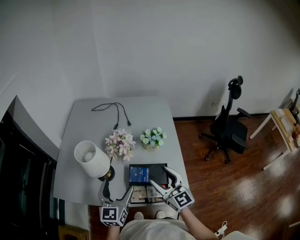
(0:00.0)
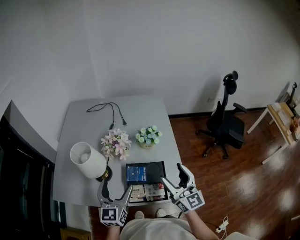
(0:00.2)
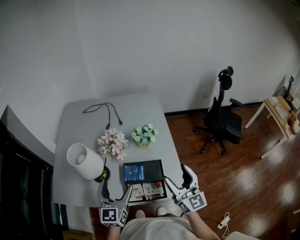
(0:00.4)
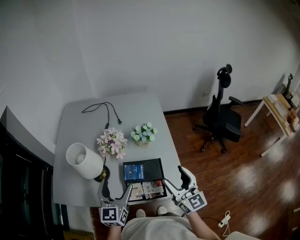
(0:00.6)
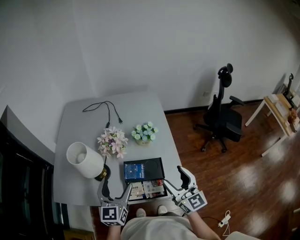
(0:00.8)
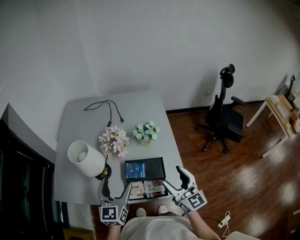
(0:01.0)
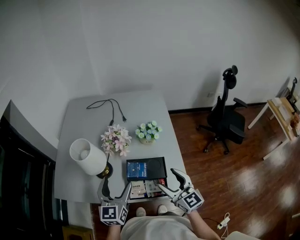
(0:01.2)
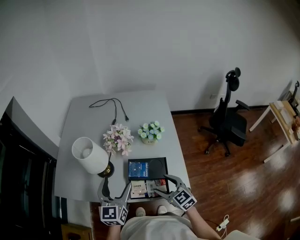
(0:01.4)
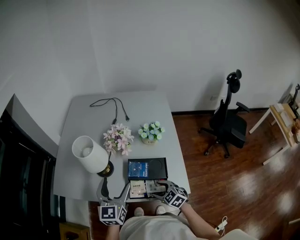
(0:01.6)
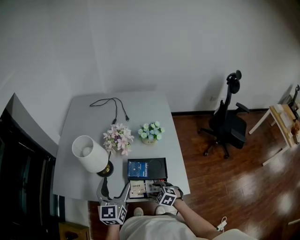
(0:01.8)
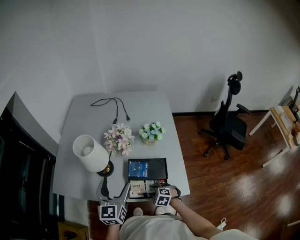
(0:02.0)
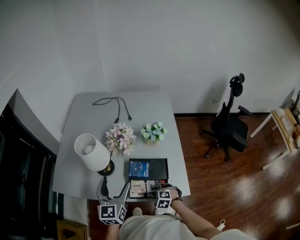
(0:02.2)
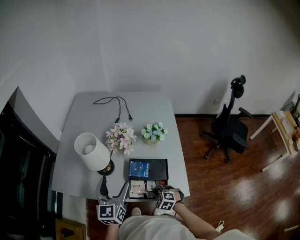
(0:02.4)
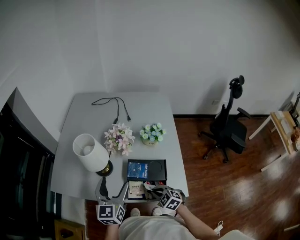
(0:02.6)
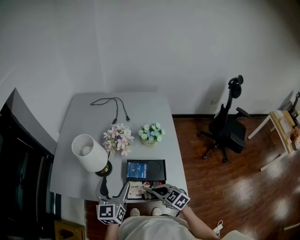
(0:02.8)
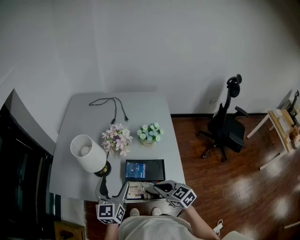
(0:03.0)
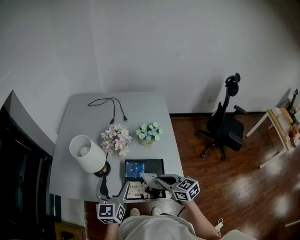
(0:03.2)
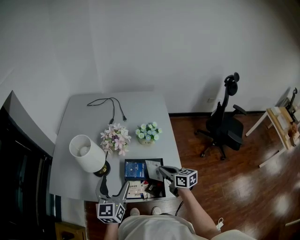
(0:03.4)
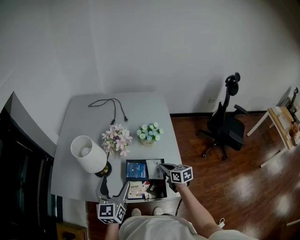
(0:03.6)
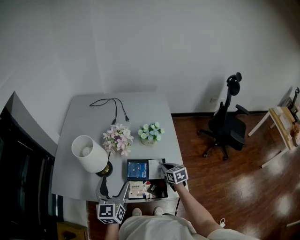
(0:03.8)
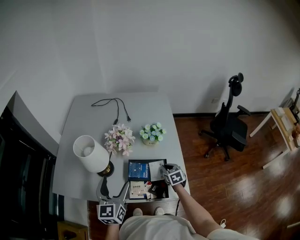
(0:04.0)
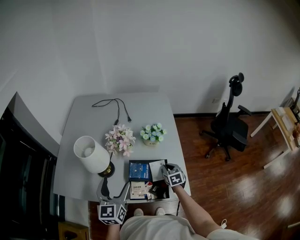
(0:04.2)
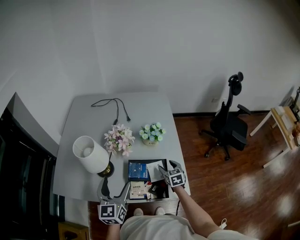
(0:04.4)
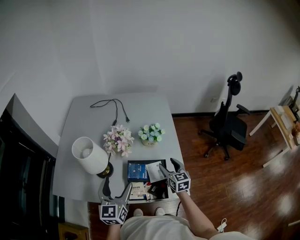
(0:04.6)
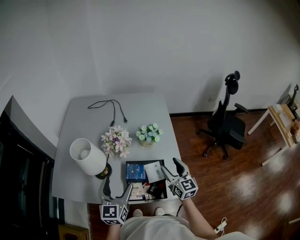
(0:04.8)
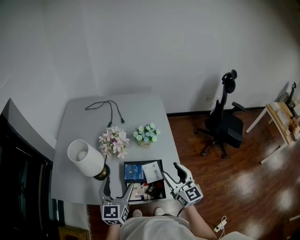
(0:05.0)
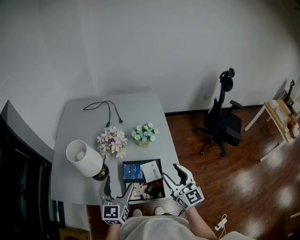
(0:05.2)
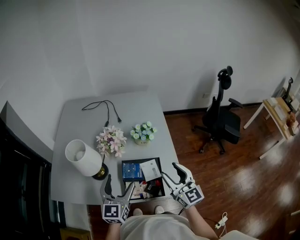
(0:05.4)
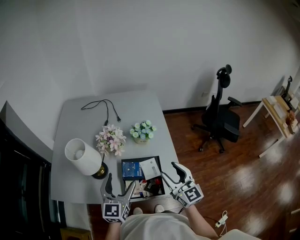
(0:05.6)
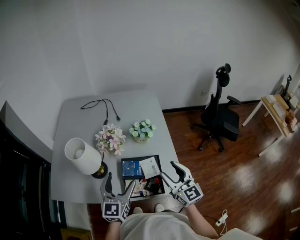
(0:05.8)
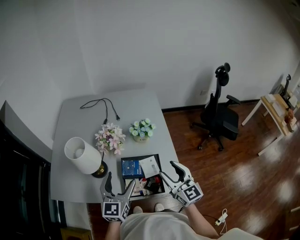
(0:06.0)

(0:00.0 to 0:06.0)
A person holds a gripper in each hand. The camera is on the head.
0:00.0 - 0:01.6: The right gripper heads downward, covering approximately 20 cm, and tilts its fingers about 50 degrees downward.
0:01.6 - 0:03.0: The right gripper moves upward, some 10 cm, and closes.
0:03.0 - 0:04.4: The right gripper goes roughly 20 cm forward, to the right and downward, changes its angle by roughly 30 degrees, and opens up.
0:04.4 - 0:06.0: The right gripper is displaced upward and backward by approximately 25 cm, and tips its fingers upward by roughly 40 degrees; the left gripper travels to the right by roughly 5 cm.

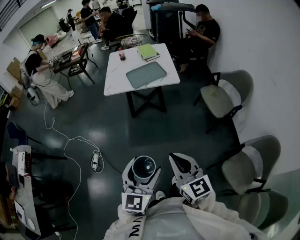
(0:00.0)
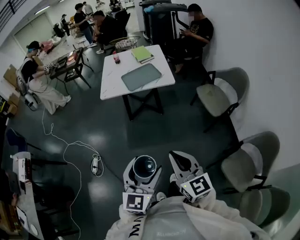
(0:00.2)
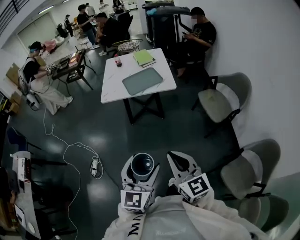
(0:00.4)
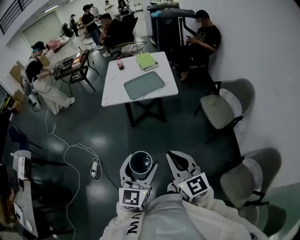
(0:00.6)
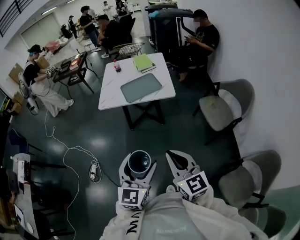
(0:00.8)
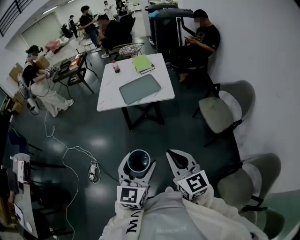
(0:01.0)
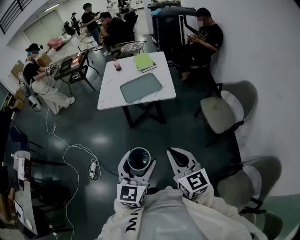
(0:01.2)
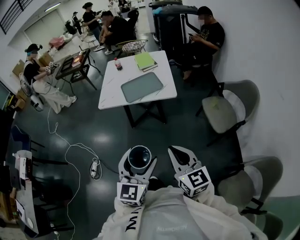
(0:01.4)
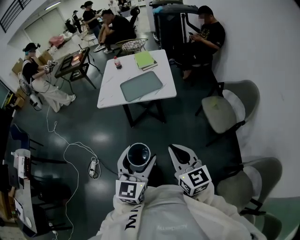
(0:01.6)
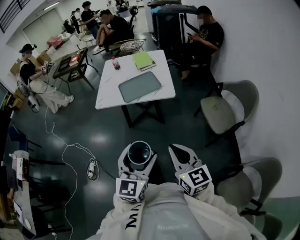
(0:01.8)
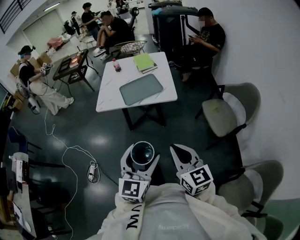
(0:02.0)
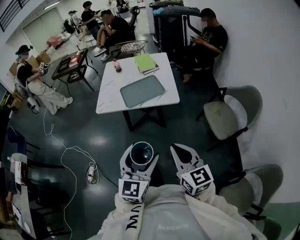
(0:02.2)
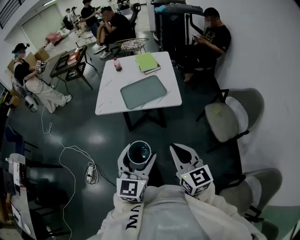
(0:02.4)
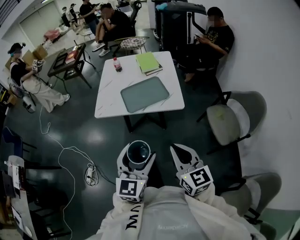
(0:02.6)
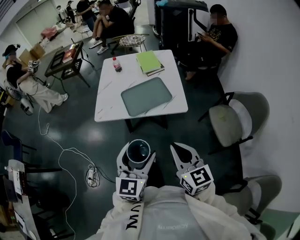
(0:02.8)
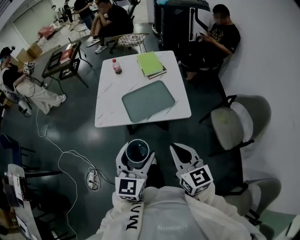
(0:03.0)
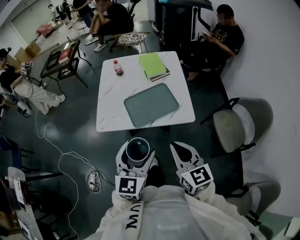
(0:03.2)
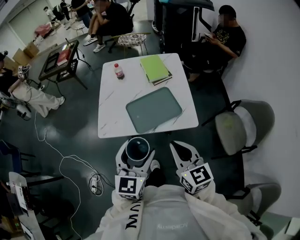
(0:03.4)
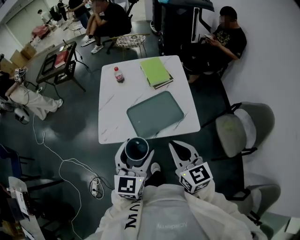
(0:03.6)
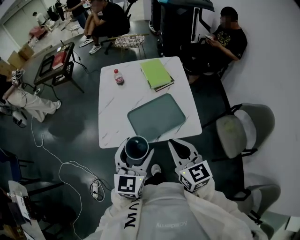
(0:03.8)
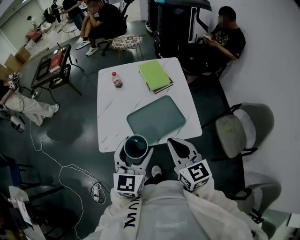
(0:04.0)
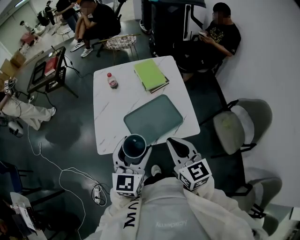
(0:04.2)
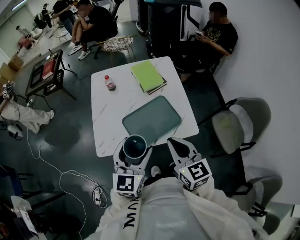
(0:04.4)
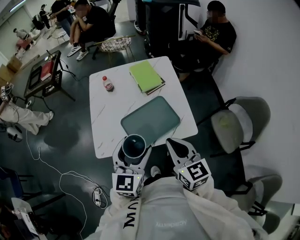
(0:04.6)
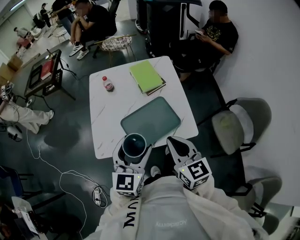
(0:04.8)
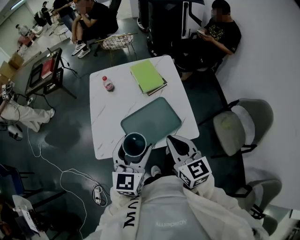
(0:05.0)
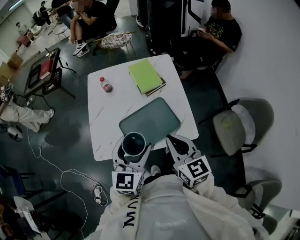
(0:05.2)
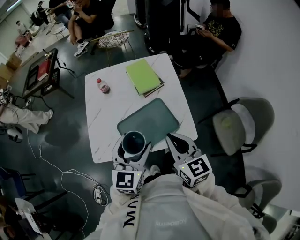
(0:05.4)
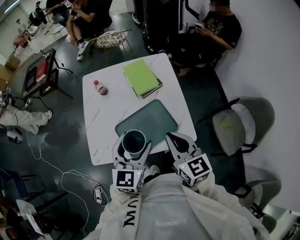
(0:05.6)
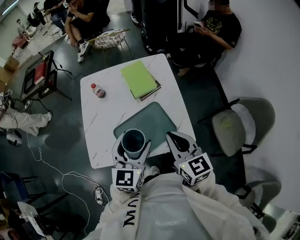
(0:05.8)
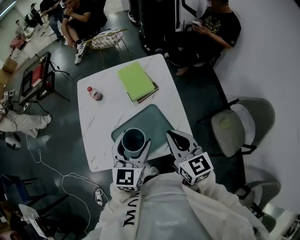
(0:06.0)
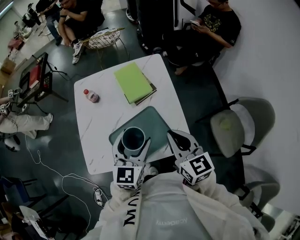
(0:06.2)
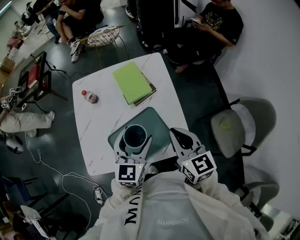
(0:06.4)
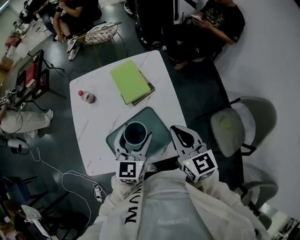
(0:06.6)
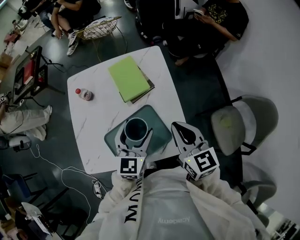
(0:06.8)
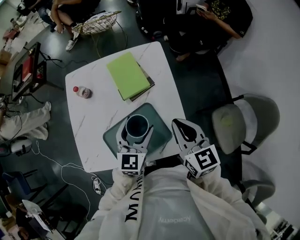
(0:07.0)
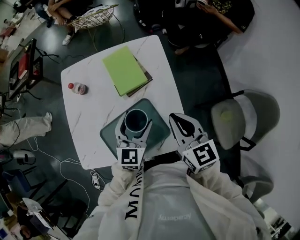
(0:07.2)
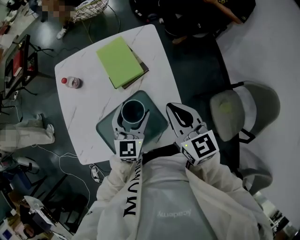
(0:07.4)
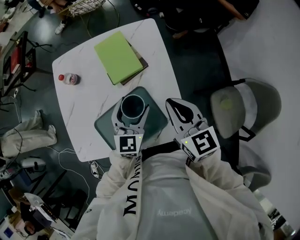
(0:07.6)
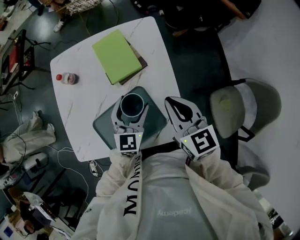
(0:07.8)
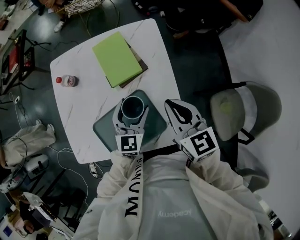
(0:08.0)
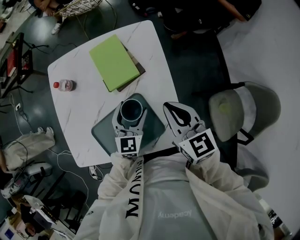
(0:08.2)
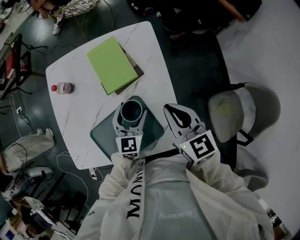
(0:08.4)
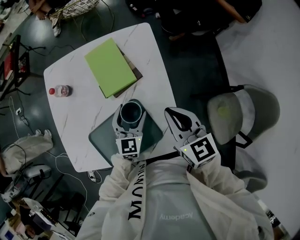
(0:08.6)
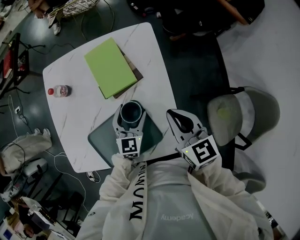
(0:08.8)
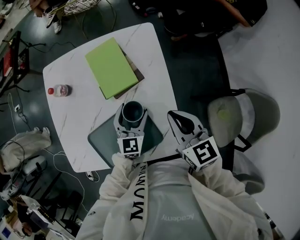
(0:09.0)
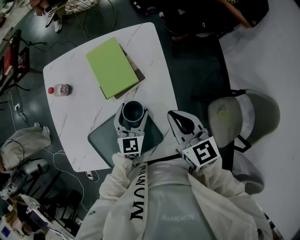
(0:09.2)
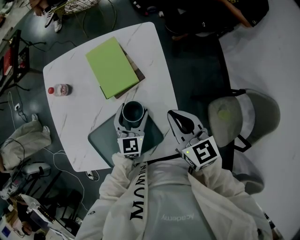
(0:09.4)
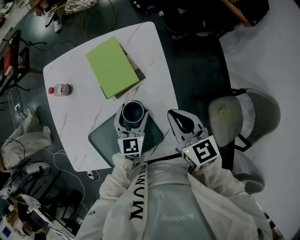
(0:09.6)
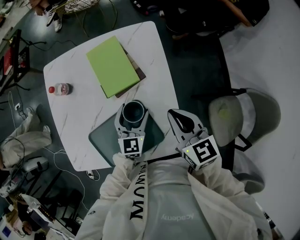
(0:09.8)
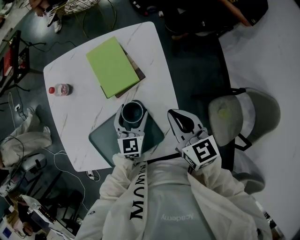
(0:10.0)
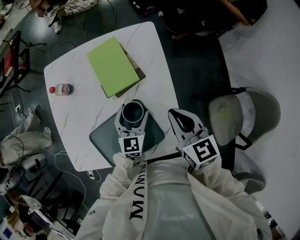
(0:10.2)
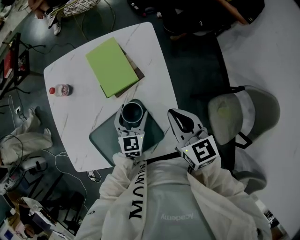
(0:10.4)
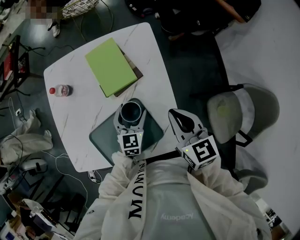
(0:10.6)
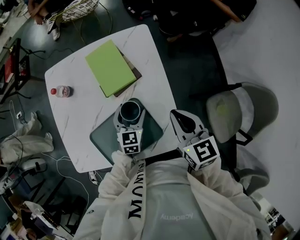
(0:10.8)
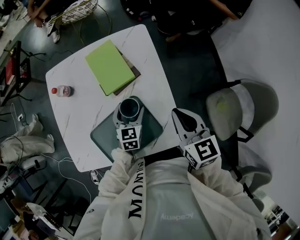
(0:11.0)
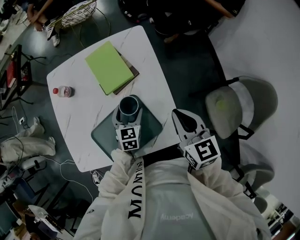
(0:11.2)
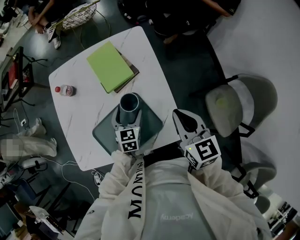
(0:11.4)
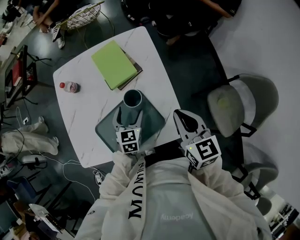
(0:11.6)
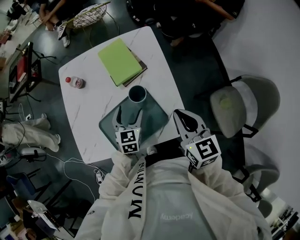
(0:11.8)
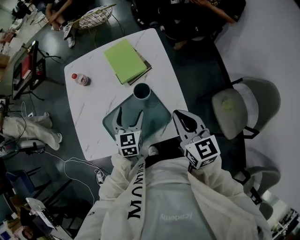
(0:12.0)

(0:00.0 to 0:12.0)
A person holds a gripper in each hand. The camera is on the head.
0:00.0 - 0:01.6: Both grippers move forward and to the right, about 20 cm.
0:01.6 - 0:03.0: Both grippers move forward, roughly 25 cm.
0:03.0 - 0:04.4: The two grippers go roughly 20 cm forward.
0:04.4 - 0:06.0: The two grippers go some 15 cm forward and to the right.
0:06.0 - 0:07.6: The right gripper is displaced forward, to the right and downward by approximately 15 cm. Meanwhile the left gripper shifts some 20 cm forward, downward and to the right.
0:07.6 - 0:09.0: The left gripper travels downward by approximately 10 cm. Meanwhile the right gripper is displaced downward by roughly 5 cm.
0:09.0 - 0:10.4: The grippers stay close to where they were, moving slightly.
0:10.4 - 0:12.0: The left gripper moves backward, to the left and upward, approximately 15 cm. The right gripper shifts roughly 15 cm backward and upward.

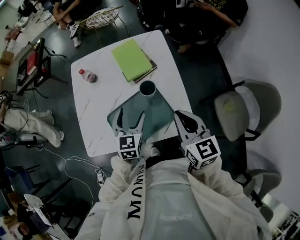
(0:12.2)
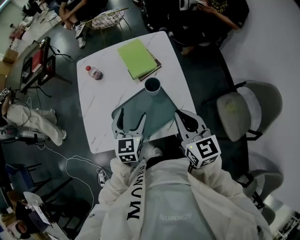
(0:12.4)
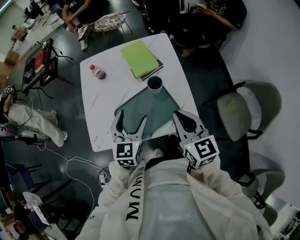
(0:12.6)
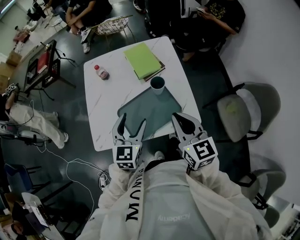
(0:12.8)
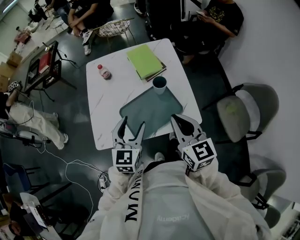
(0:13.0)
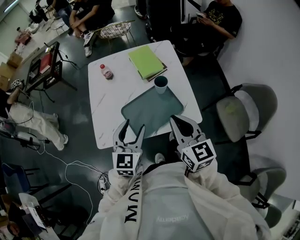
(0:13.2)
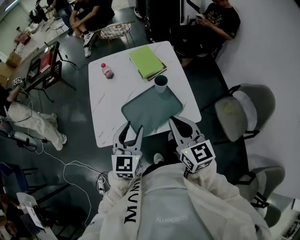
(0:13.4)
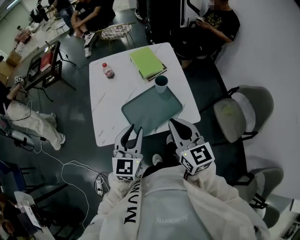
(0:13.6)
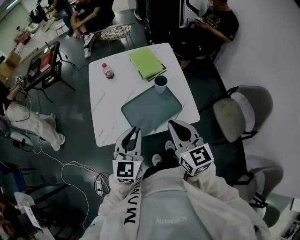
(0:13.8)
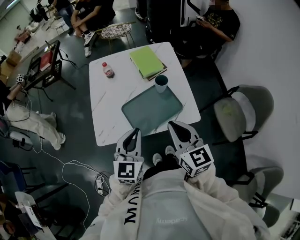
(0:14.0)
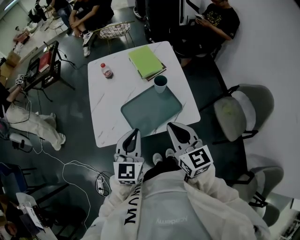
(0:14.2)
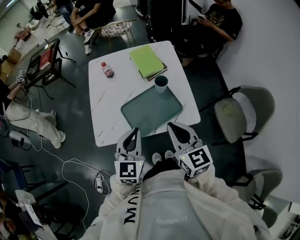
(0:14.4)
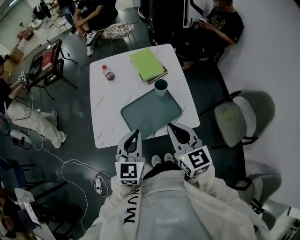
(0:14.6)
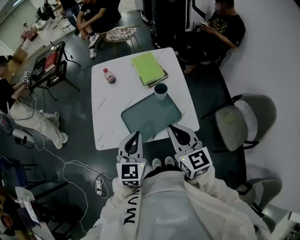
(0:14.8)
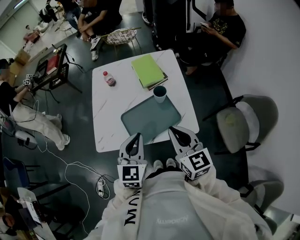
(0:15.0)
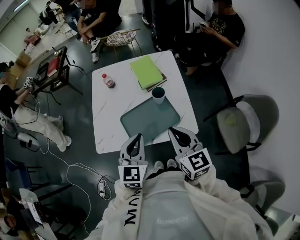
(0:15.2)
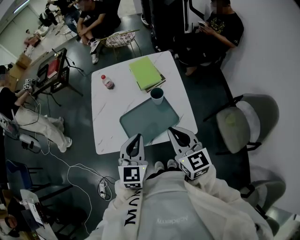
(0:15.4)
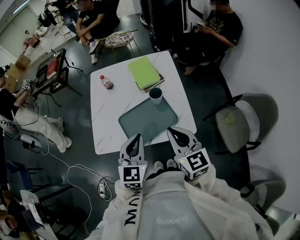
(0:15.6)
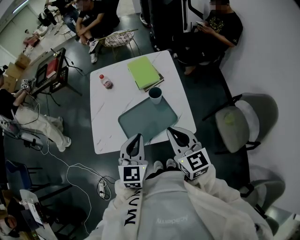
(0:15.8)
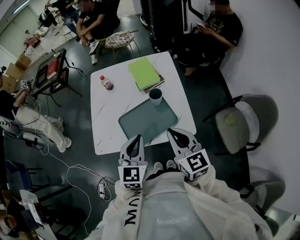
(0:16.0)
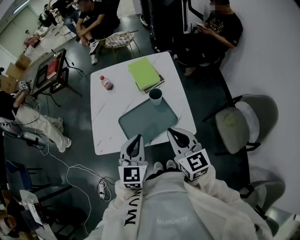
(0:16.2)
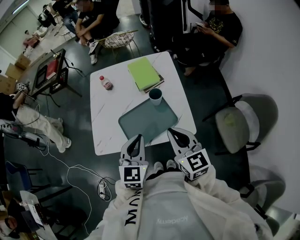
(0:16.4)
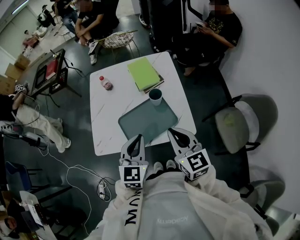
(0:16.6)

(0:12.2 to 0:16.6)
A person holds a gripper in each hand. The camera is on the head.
0:12.2 - 0:13.6: The right gripper heads backward, to the left and upward, covering some 20 cm. Meanwhile the left gripper travels backward, upward and to the left by some 25 cm, and closes its fingers.
0:13.6 - 0:15.2: The left gripper goes approximately 5 cm to the right. The right gripper ends up approximately 5 cm from where it was.
0:15.2 - 0:16.6: The grippers move only a little.

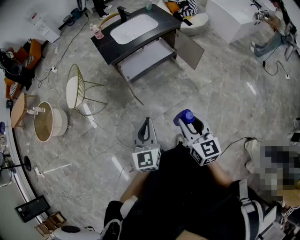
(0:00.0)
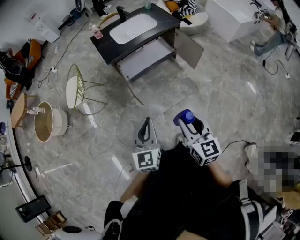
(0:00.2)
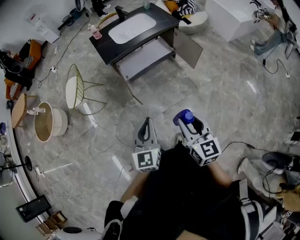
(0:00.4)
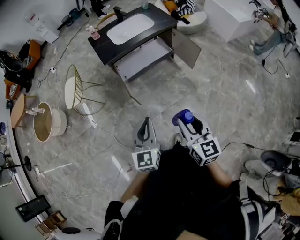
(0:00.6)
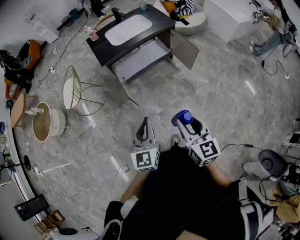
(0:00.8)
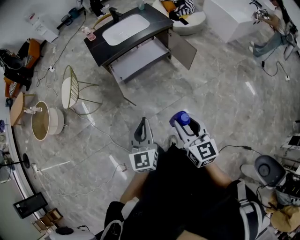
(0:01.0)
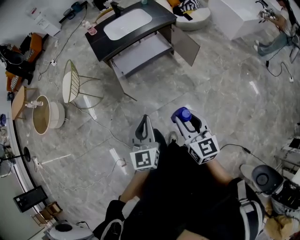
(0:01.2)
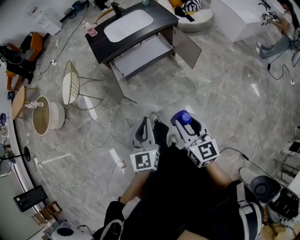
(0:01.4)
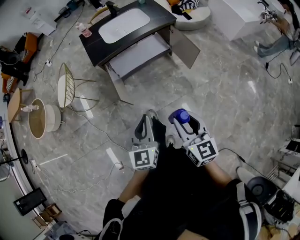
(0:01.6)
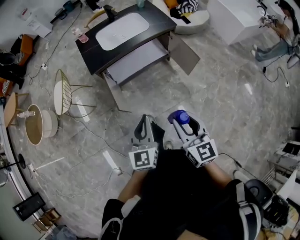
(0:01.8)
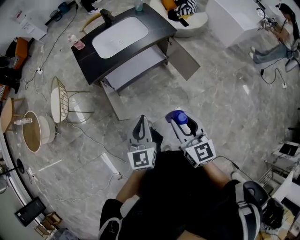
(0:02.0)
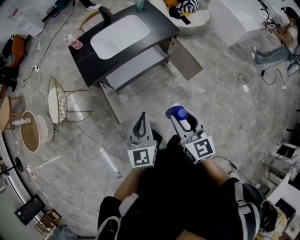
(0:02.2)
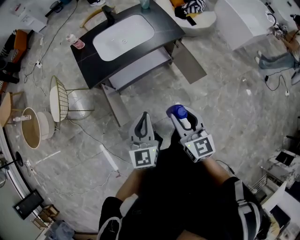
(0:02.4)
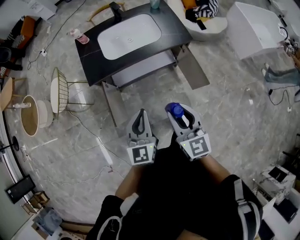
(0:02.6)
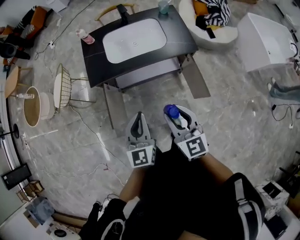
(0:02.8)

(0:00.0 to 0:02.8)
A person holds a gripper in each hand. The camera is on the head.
0:00.0 - 0:01.4: Both grippers travel together to the right, some 10 cm.
0:01.4 - 0:02.8: Both grippers travel together forward, approximately 40 cm. The right gripper changes its angle by some 20 degrees.
